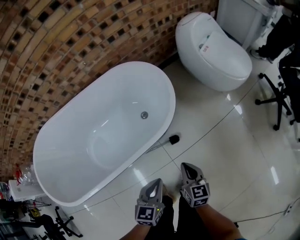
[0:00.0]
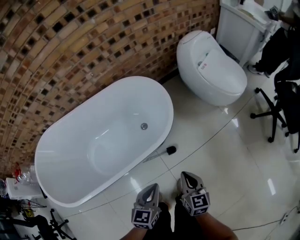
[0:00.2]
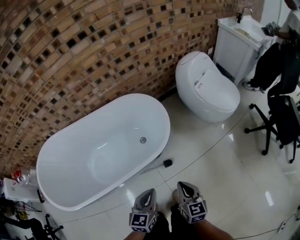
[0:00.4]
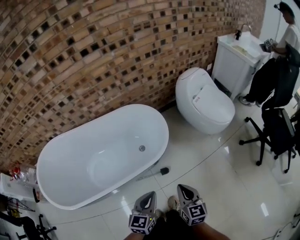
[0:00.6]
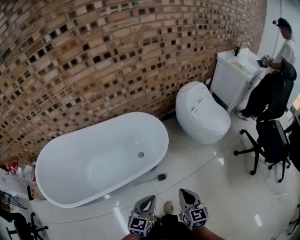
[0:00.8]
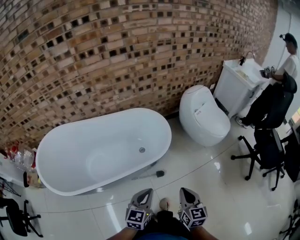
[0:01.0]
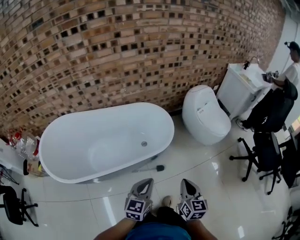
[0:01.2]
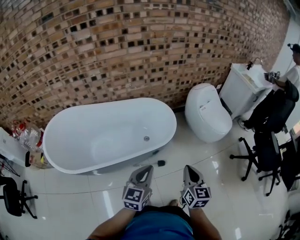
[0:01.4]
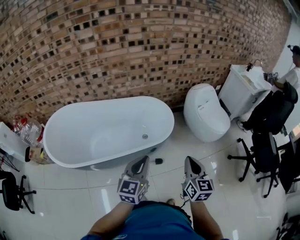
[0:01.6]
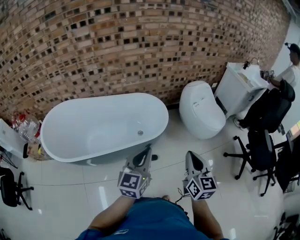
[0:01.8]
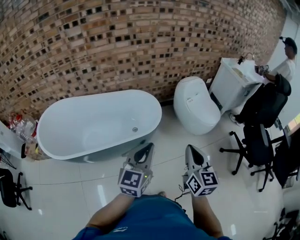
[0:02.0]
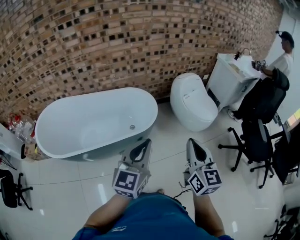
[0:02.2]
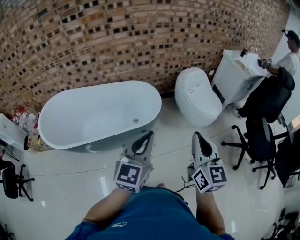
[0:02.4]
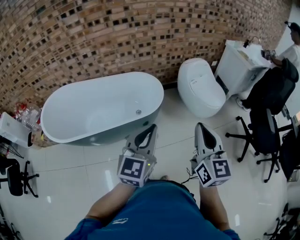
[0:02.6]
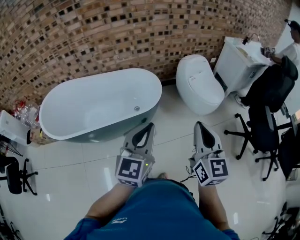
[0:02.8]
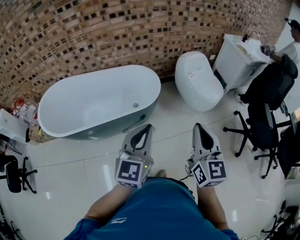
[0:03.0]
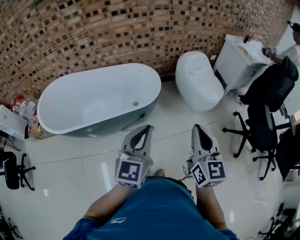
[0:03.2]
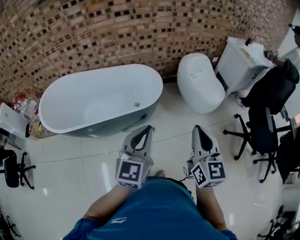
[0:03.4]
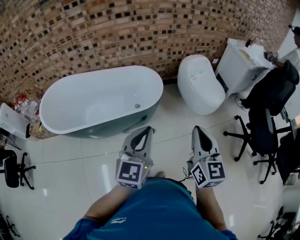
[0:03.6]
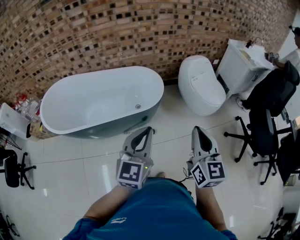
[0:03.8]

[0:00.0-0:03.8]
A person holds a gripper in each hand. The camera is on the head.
0:00.0 to 0:01.2: Both grippers move upward and backward, some 35 cm.
0:01.2 to 0:02.6: The right gripper moves upward and to the right, roughly 25 cm, and rotates some 20 degrees. The left gripper travels to the right and upward by approximately 25 cm.
0:02.6 to 0:03.8: The grippers move only a little.

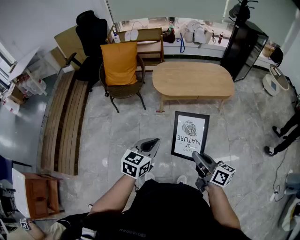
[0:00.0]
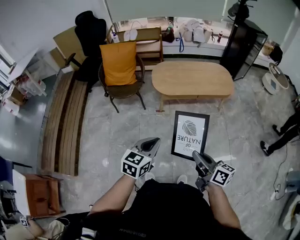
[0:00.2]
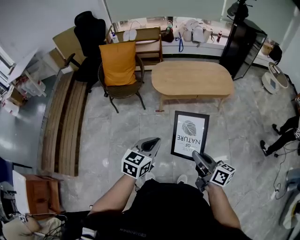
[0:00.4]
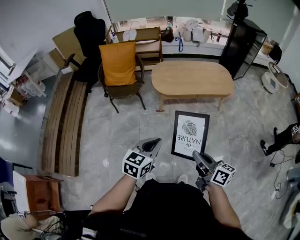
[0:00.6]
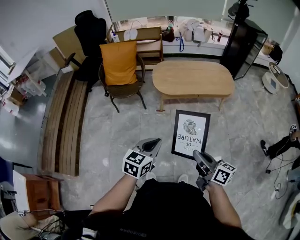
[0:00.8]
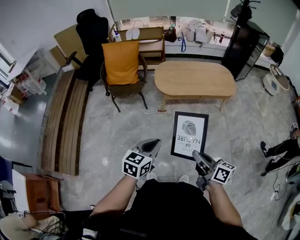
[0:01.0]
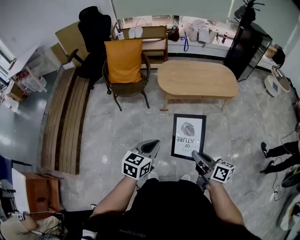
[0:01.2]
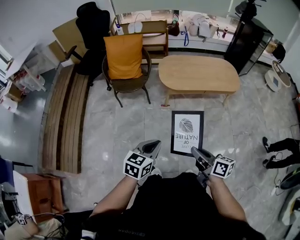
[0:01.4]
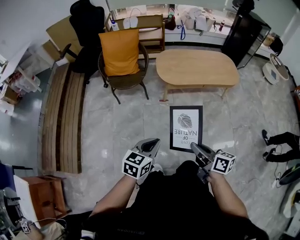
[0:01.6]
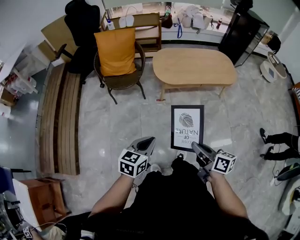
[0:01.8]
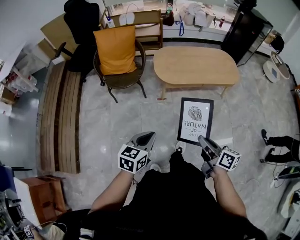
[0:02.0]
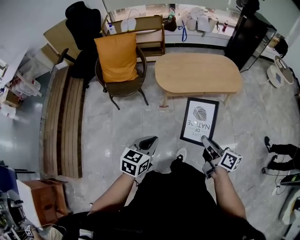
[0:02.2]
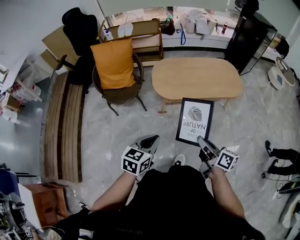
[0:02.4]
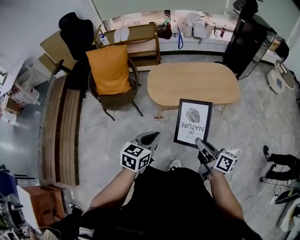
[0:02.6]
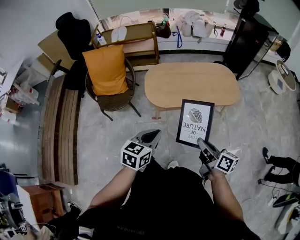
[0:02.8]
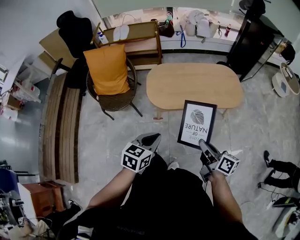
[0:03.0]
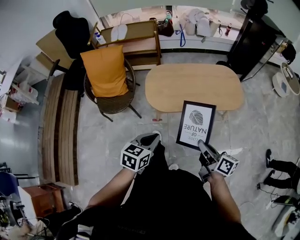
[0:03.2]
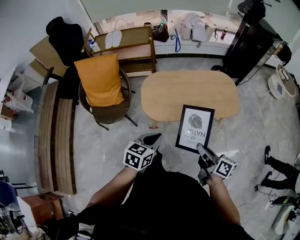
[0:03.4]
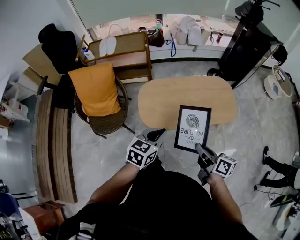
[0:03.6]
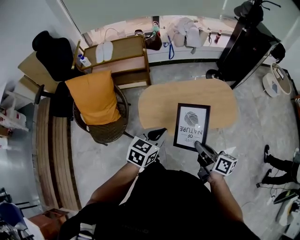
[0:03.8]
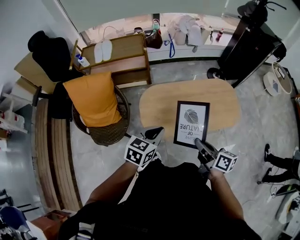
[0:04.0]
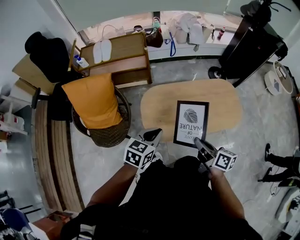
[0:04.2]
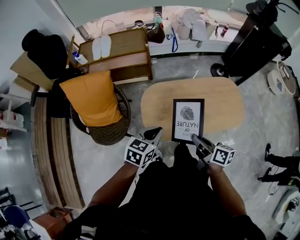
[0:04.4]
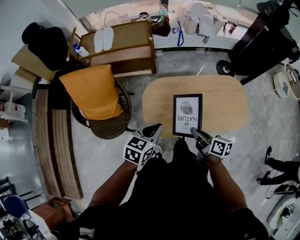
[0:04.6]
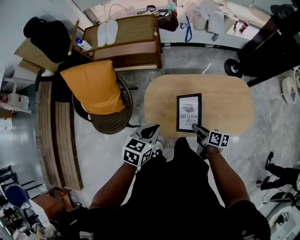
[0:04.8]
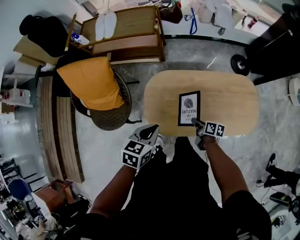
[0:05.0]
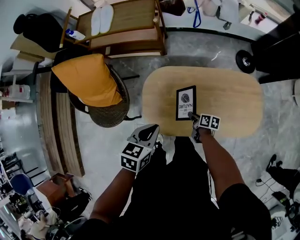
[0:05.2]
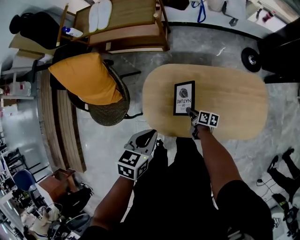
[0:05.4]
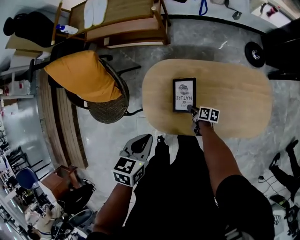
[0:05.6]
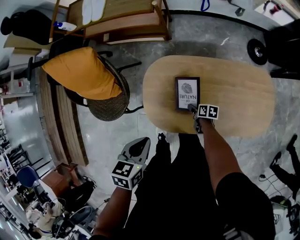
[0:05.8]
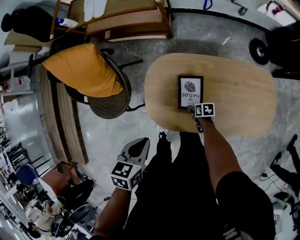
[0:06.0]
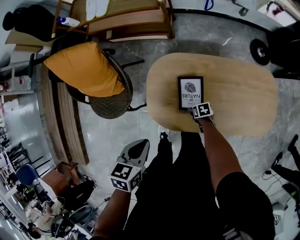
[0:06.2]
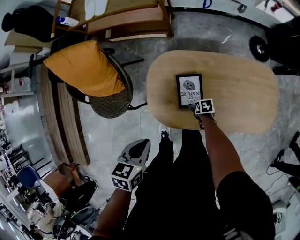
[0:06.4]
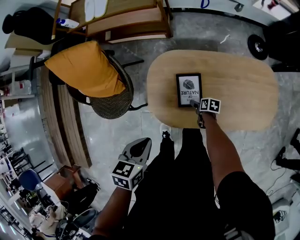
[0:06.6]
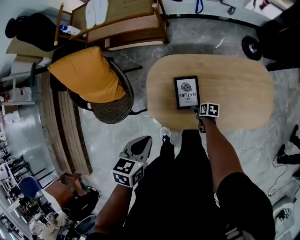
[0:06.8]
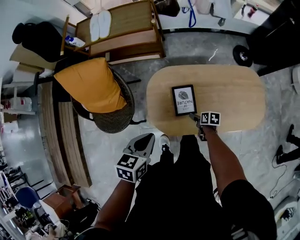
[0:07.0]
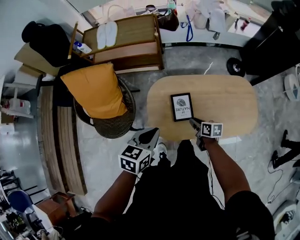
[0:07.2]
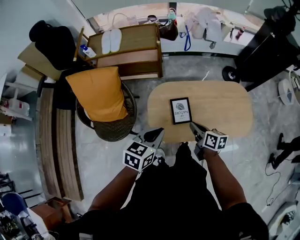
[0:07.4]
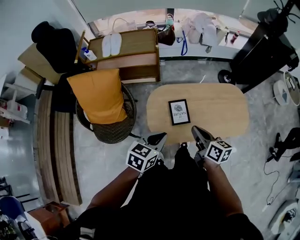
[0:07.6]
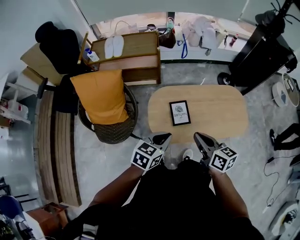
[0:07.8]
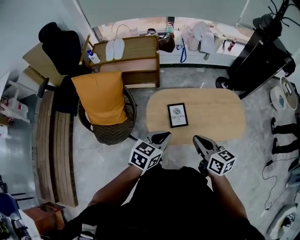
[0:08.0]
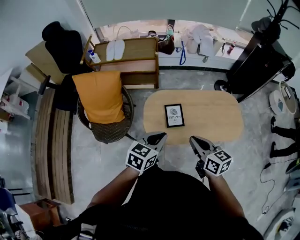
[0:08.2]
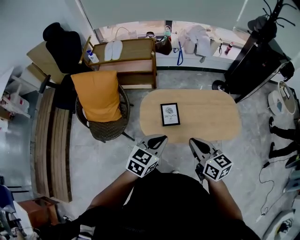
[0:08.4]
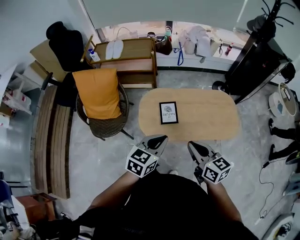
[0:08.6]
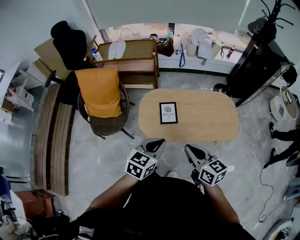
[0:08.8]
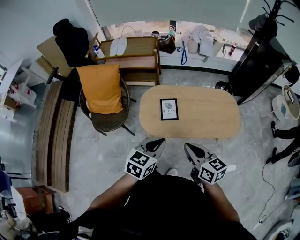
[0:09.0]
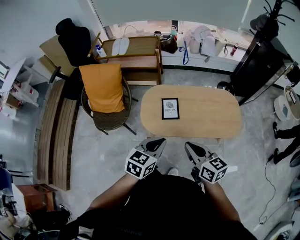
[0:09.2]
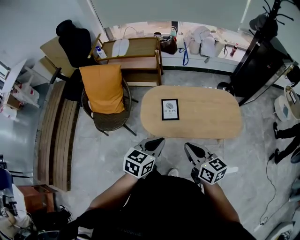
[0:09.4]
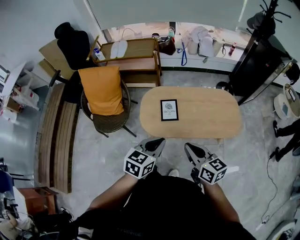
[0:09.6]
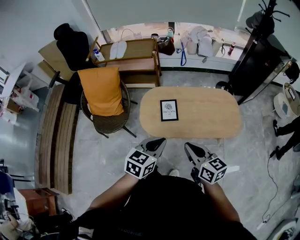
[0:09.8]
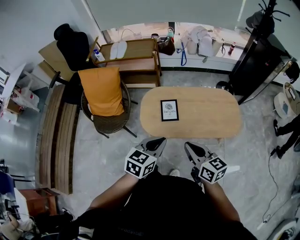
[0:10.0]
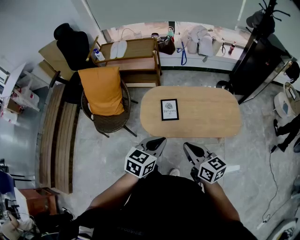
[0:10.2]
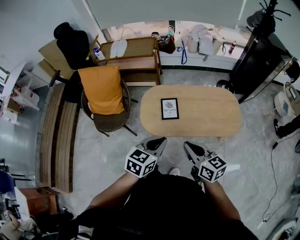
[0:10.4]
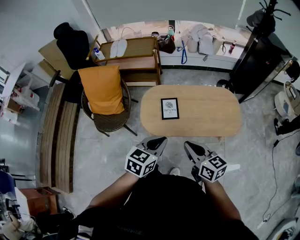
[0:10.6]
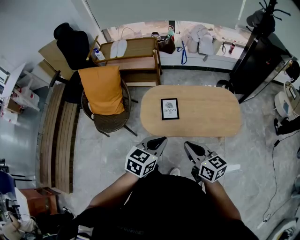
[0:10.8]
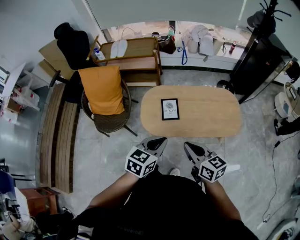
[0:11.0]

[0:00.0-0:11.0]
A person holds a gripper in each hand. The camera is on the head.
0:00.0 to 0:01.6: The two grippers go about 10 cm to the left.
0:01.6 to 0:03.2: The grippers both shift forward and to the right by some 35 cm.
0:03.2 to 0:04.8: The left gripper moves forward, some 35 cm; the right gripper moves forward and downward, some 40 cm, and swivels roughly 20 degrees.
0:04.8 to 0:06.2: The right gripper goes some 35 cm downward, points its fingers roughly 40 degrees further downward, and opens; the left gripper heads downward, covering about 10 cm, and changes its angle by approximately 20 degrees.
0:06.2 to 0:07.8: The left gripper moves upward, roughly 10 cm, and swivels about 40 degrees. The right gripper is displaced upward by about 50 cm, angles its fingers upward, by some 50 degrees, and closes up.
0:07.8 to 0:09.4: The two grippers go approximately 20 cm backward and to the right.
0:09.4 to 0:11.0: The grippers move only a little.

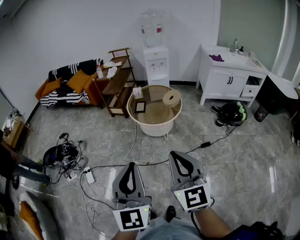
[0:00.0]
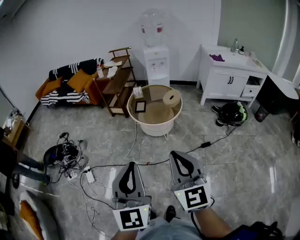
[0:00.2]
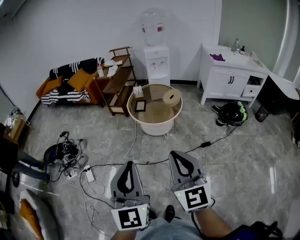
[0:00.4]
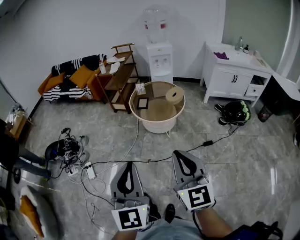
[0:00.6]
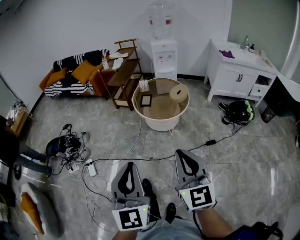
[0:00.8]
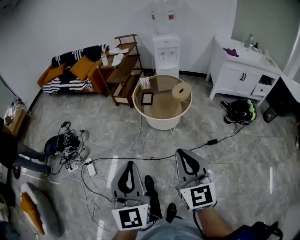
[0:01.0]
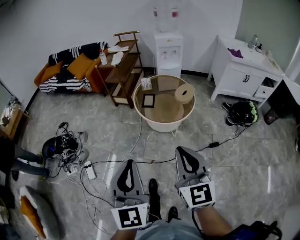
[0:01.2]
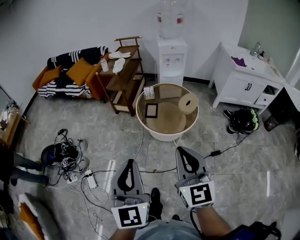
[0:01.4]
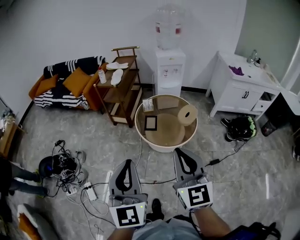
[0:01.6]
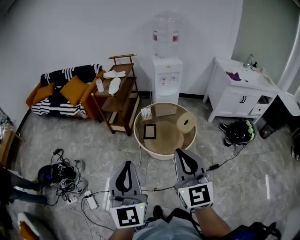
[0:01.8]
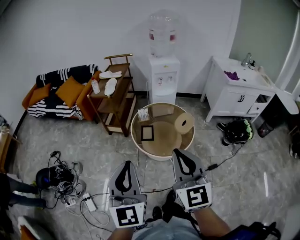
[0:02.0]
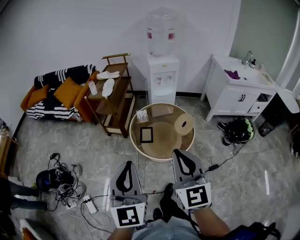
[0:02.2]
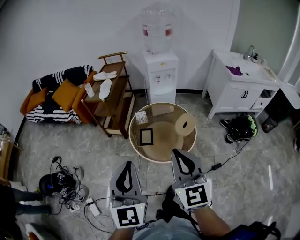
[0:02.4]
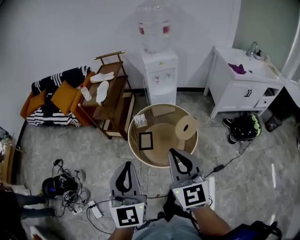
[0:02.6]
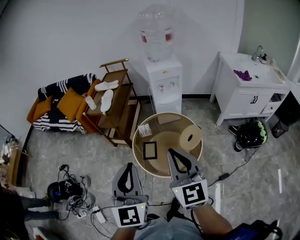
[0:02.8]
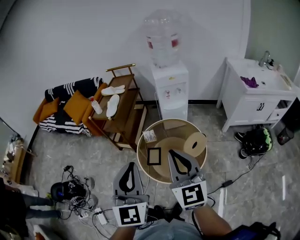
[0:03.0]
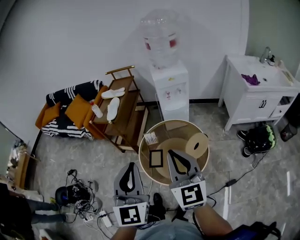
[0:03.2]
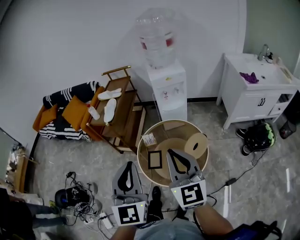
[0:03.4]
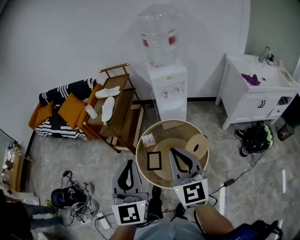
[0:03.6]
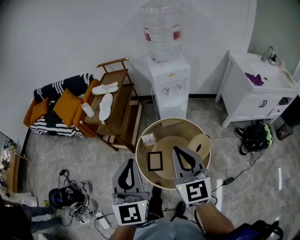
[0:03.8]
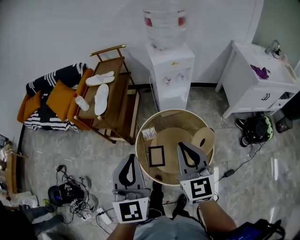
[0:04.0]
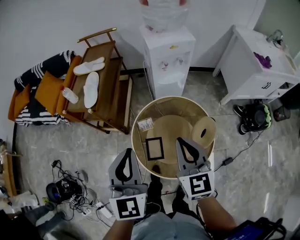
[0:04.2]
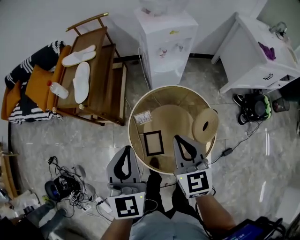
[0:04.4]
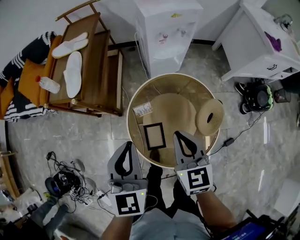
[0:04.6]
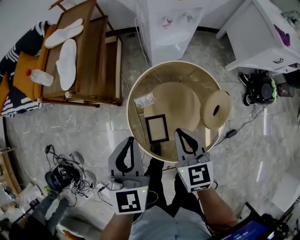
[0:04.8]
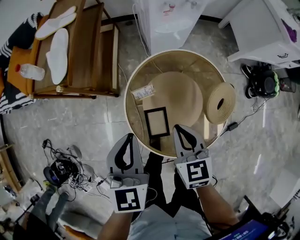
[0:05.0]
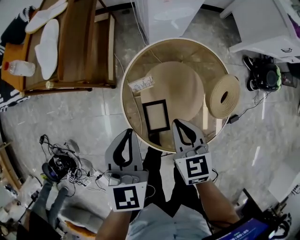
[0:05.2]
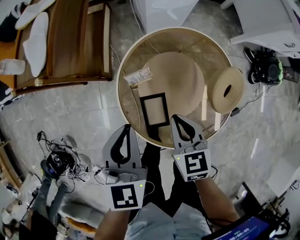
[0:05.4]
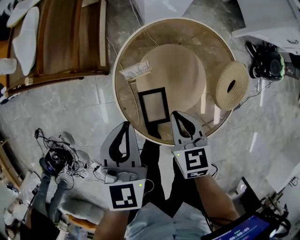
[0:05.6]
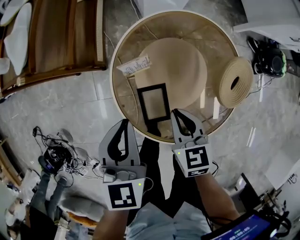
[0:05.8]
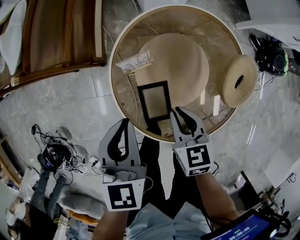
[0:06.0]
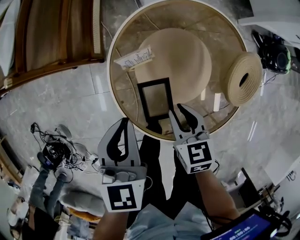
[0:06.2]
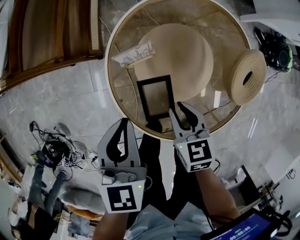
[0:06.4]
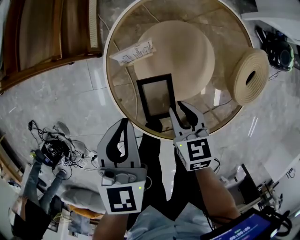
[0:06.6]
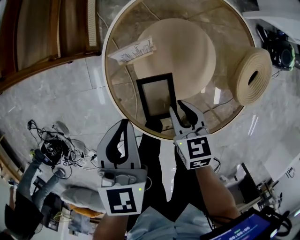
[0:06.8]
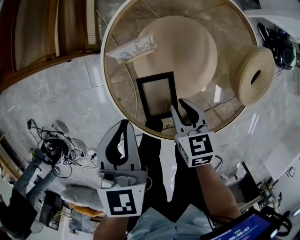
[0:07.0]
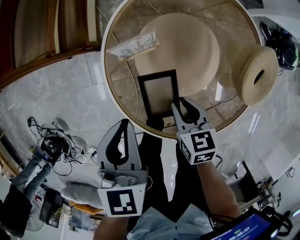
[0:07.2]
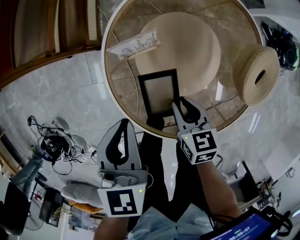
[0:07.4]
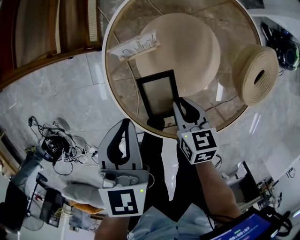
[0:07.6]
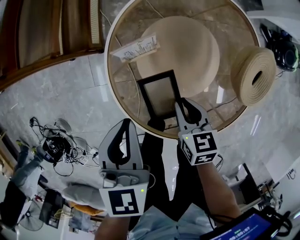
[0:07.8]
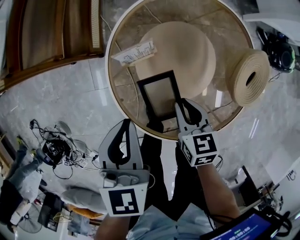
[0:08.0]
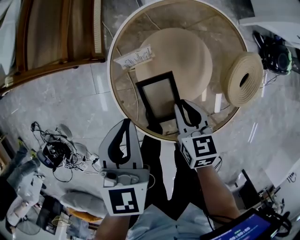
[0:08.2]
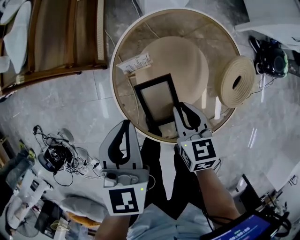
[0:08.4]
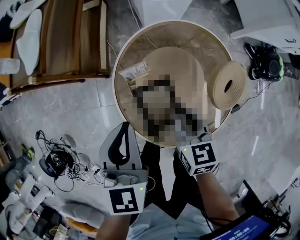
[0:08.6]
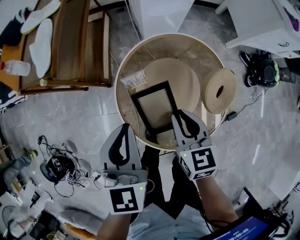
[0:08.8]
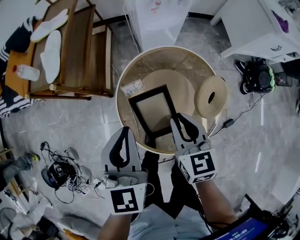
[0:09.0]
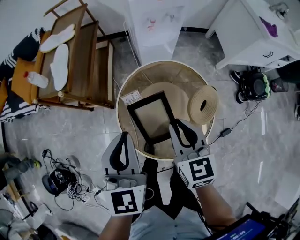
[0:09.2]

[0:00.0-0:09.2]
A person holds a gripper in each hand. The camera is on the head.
0:00.0 to 0:01.6: Both grippers travel together forward, roughly 30 cm.
0:01.6 to 0:03.0: The two grippers go approximately 30 cm forward.
0:03.0 to 0:04.6: The left gripper shifts about 40 cm forward and downward, and turns by about 20 degrees, while the right gripper moves downward and forward, about 40 cm, and changes its angle by about 30 degrees.
0:04.6 to 0:06.2: Both grippers travel together downward, approximately 25 cm. The right gripper changes its angle by about 30 degrees, and opens its fingers.
0:06.2 to 0:07.6: The right gripper moves downward, some 10 cm.
0:07.6 to 0:09.2: The two grippers go some 30 cm upward. The right gripper swivels about 30 degrees. The left gripper swivels about 20 degrees.
